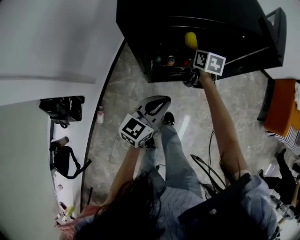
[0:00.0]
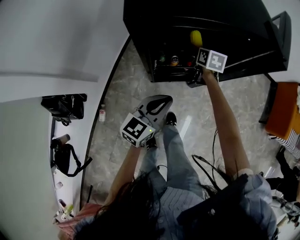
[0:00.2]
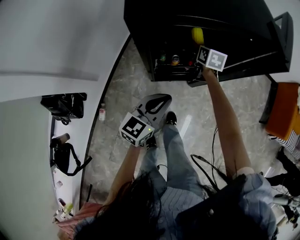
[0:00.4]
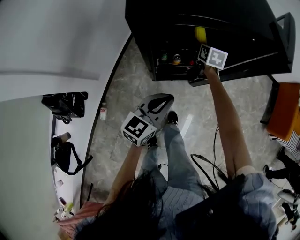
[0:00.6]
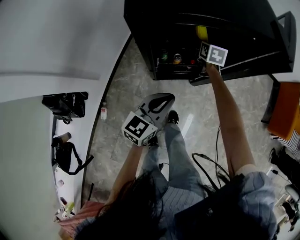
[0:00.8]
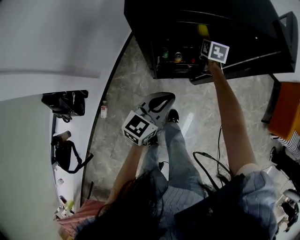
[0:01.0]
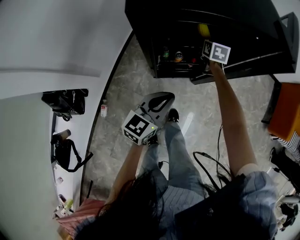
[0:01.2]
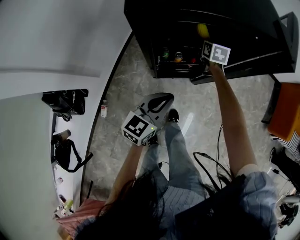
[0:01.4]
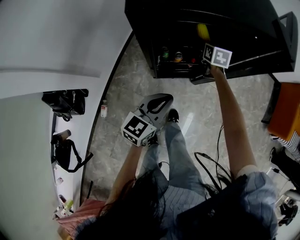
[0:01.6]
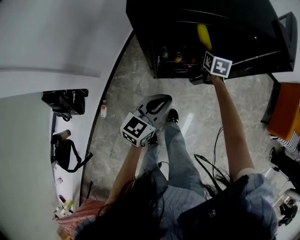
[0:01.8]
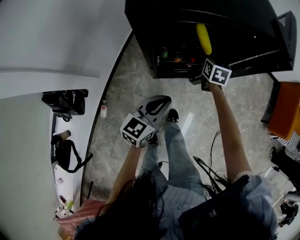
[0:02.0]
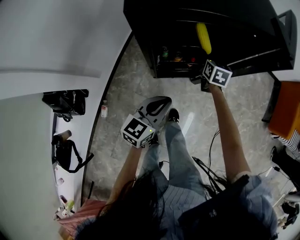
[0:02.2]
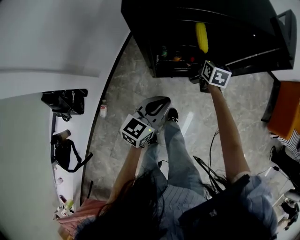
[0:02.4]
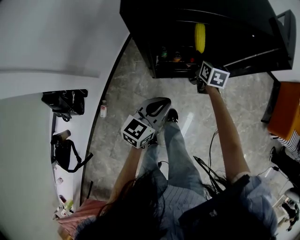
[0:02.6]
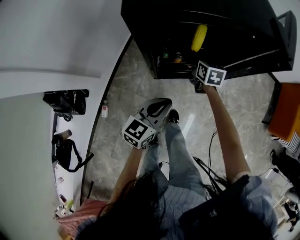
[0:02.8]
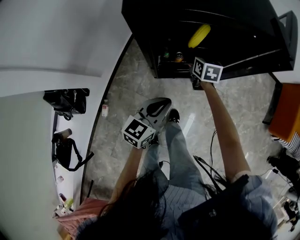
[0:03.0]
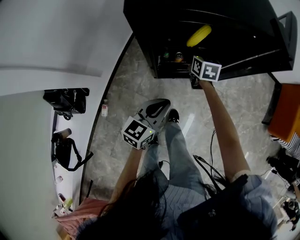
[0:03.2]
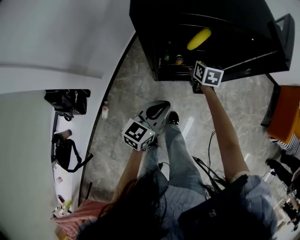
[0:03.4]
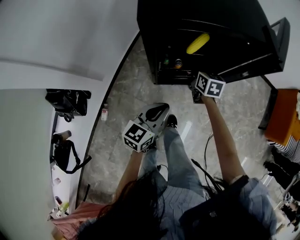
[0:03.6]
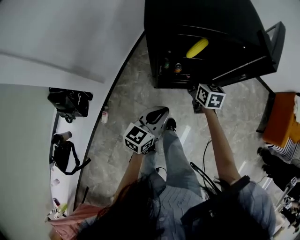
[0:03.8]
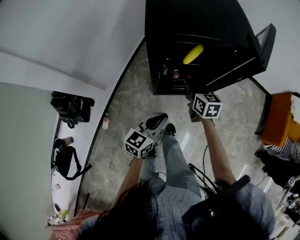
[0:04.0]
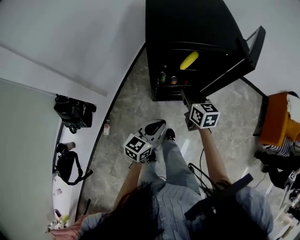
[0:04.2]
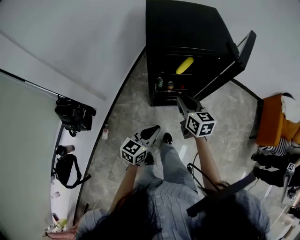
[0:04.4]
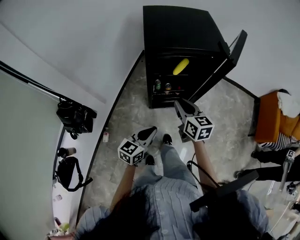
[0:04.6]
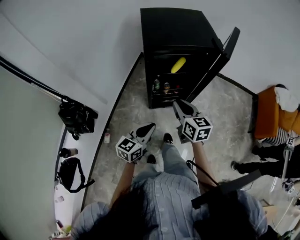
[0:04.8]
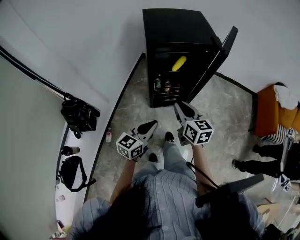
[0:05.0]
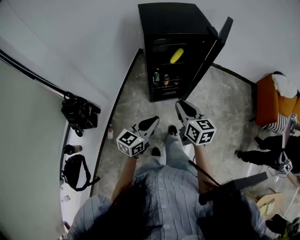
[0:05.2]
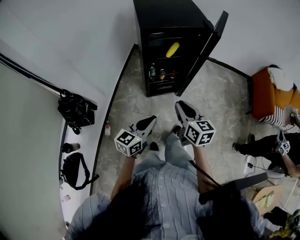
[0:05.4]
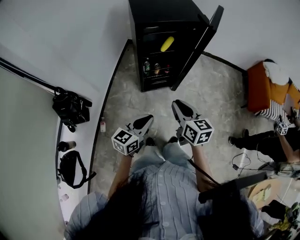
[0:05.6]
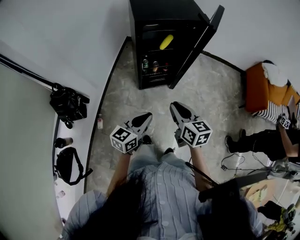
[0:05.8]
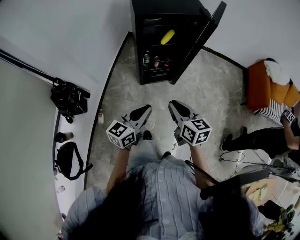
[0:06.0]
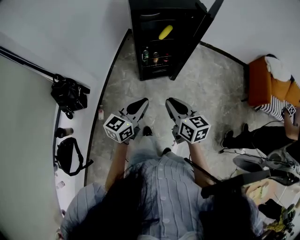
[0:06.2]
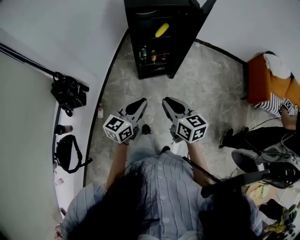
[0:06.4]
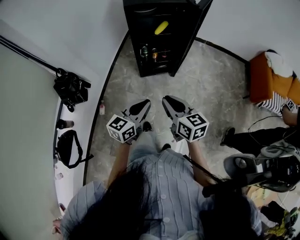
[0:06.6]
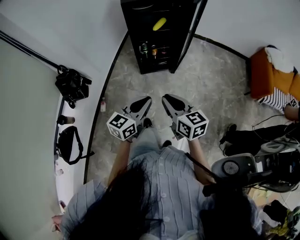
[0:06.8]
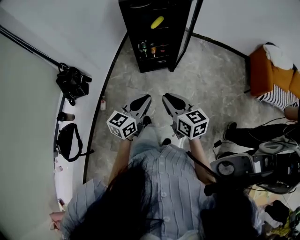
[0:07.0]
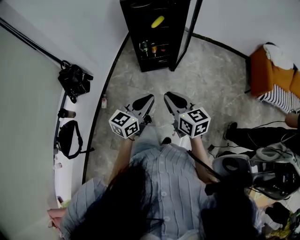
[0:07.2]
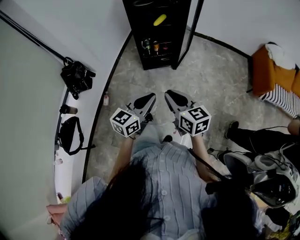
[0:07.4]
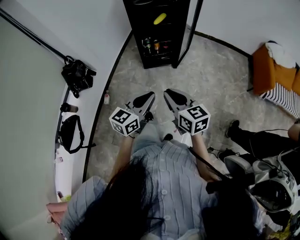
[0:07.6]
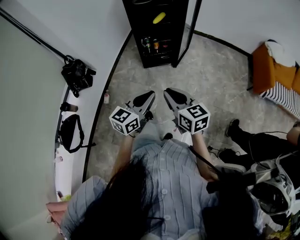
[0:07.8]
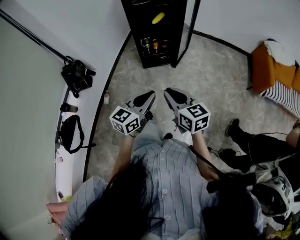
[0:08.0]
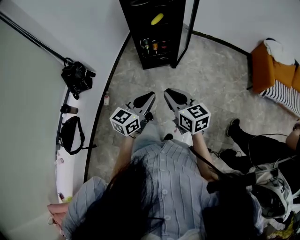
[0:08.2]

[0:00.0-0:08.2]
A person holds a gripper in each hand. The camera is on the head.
0:00.0 to 0:01.6: The right gripper is displaced forward by approximately 5 cm.
0:01.6 to 0:03.2: The right gripper moves backward, some 5 cm, and closes up.
0:03.2 to 0:05.0: The right gripper shifts approximately 40 cm backward and upward; the left gripper shifts some 25 cm backward and upward.
0:05.0 to 0:06.6: The left gripper shifts about 15 cm backward and to the right; the right gripper heads backward, covering roughly 20 cm.
0:06.6 to 0:08.2: The grippers both shift backward and to the right by approximately 15 cm.

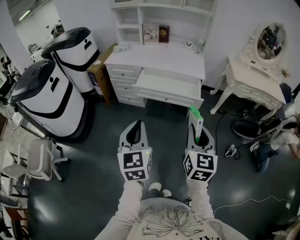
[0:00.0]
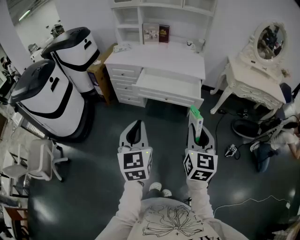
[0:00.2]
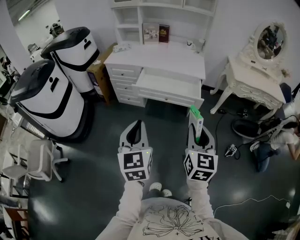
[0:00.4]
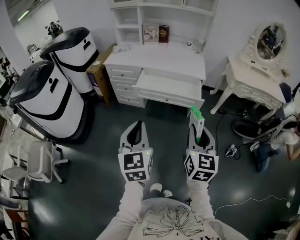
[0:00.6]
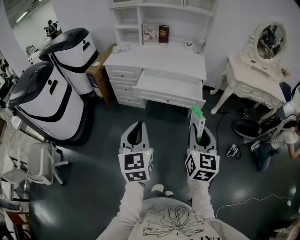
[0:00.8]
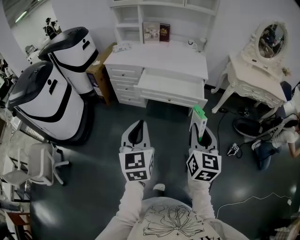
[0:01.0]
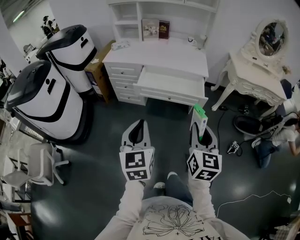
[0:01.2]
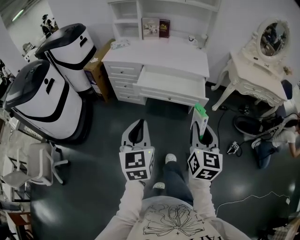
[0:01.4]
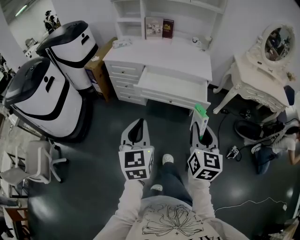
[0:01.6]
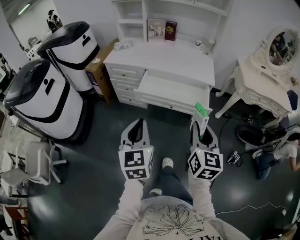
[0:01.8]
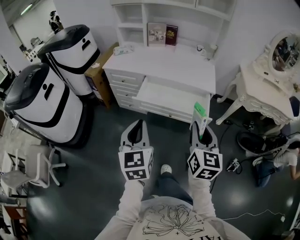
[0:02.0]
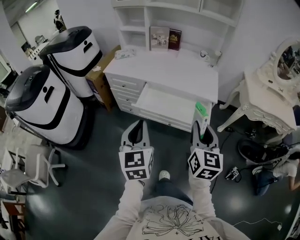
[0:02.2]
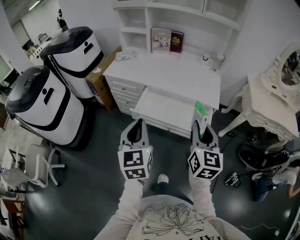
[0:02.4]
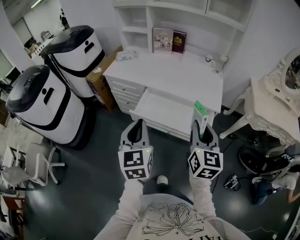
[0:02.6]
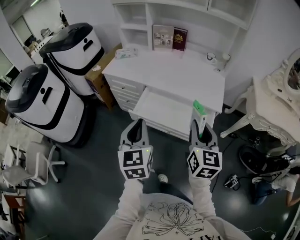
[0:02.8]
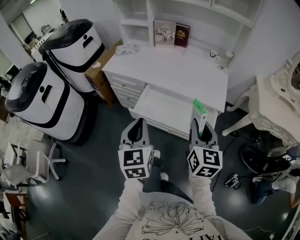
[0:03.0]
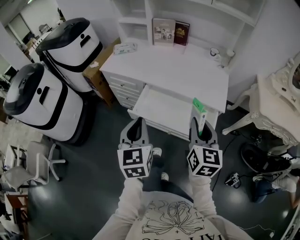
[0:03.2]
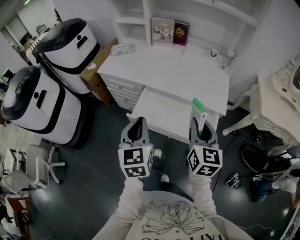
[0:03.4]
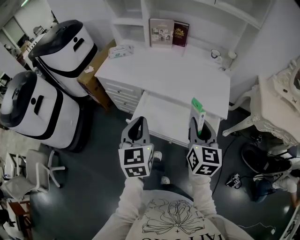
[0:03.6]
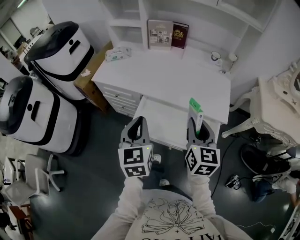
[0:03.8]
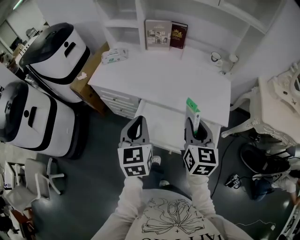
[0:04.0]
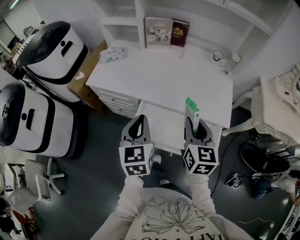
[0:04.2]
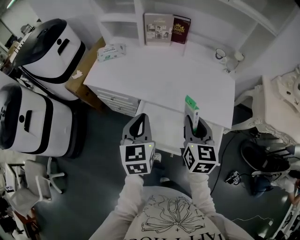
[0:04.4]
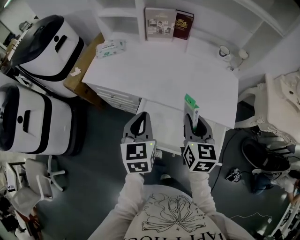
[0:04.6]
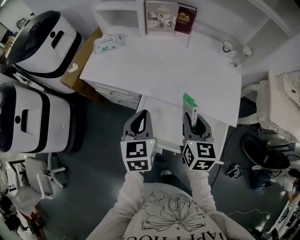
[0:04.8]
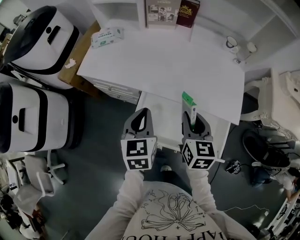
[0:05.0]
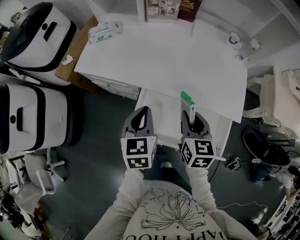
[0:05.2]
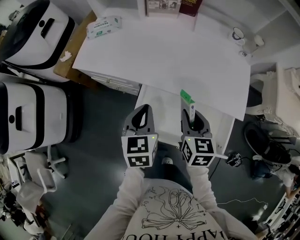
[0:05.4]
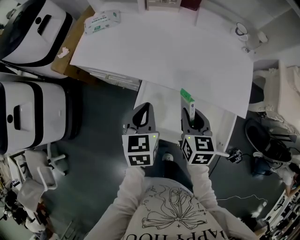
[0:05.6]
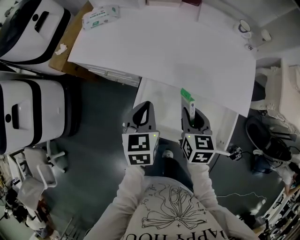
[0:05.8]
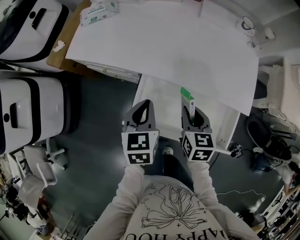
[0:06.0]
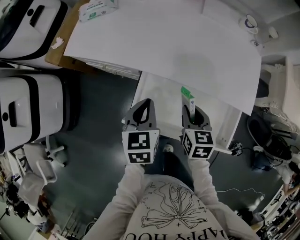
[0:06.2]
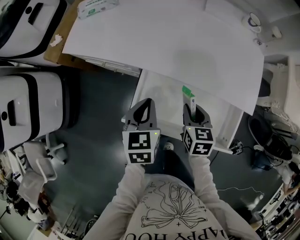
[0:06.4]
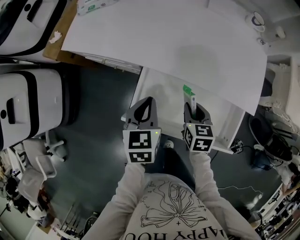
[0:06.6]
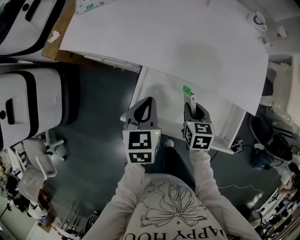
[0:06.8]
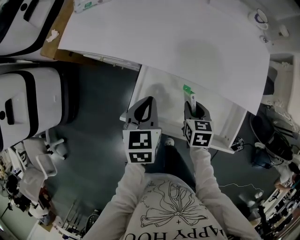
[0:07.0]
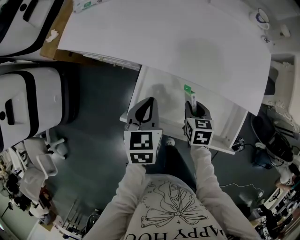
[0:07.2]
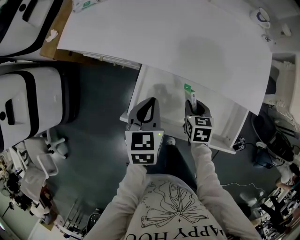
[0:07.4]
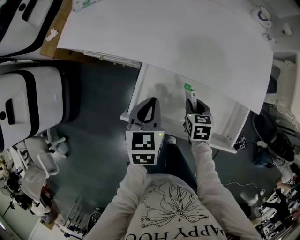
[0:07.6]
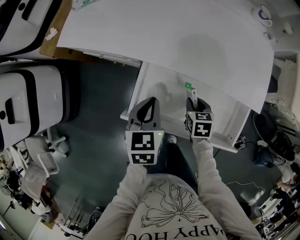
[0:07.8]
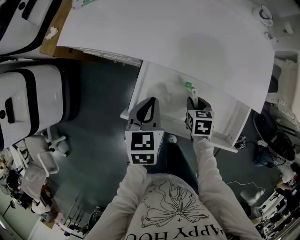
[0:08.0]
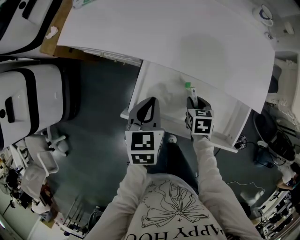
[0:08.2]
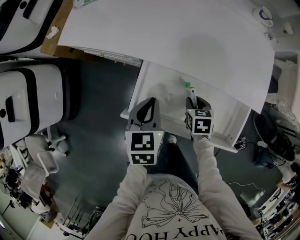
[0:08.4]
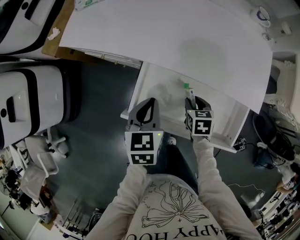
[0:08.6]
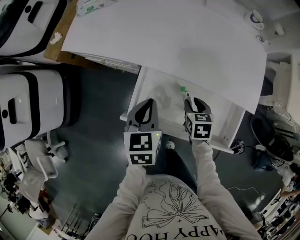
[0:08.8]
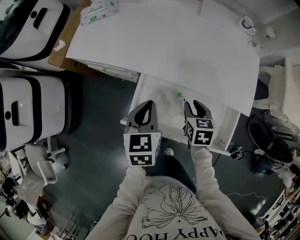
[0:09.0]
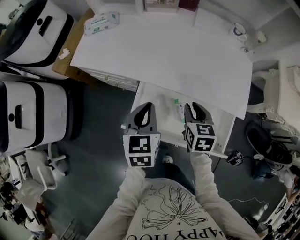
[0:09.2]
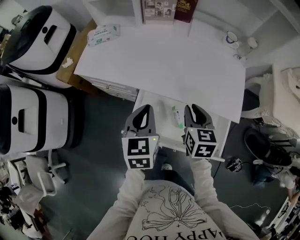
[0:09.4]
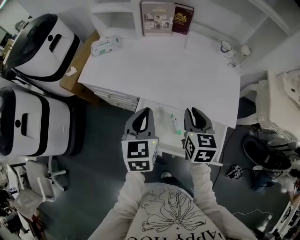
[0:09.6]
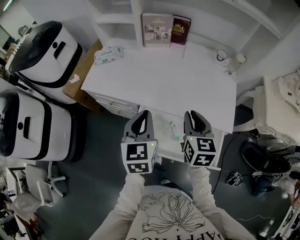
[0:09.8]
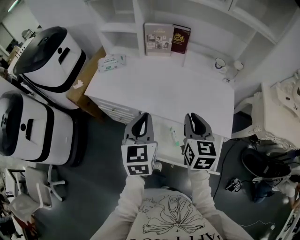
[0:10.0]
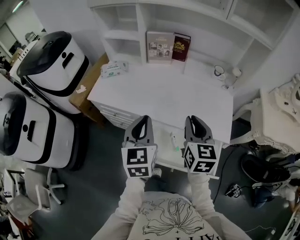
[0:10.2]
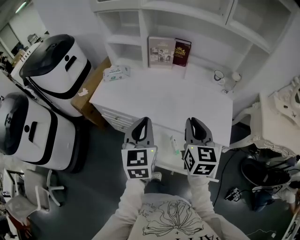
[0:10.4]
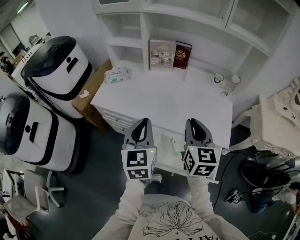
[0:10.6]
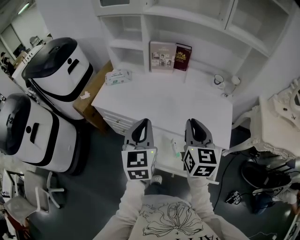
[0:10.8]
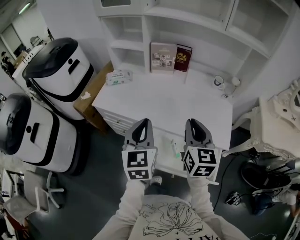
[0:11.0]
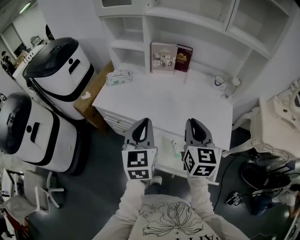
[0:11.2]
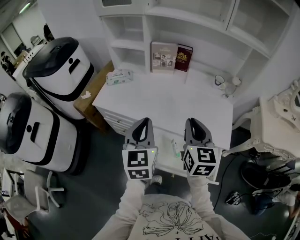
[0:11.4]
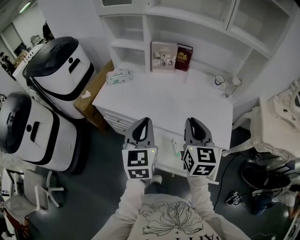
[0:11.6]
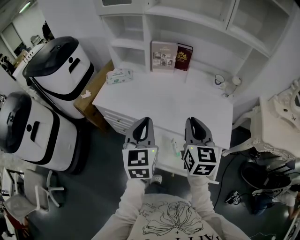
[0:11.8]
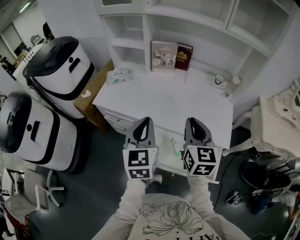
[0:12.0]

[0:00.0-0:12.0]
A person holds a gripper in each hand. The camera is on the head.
0:00.0 to 0:01.6: Both grippers move forward, roughly 5 cm.
0:01.6 to 0:03.0: The grippers both shift forward by about 25 cm.
0:03.0 to 0:04.4: The two grippers go roughly 20 cm forward.
0:04.4 to 0:06.0: Both grippers move downward, about 15 cm. The right gripper changes its angle by approximately 20 degrees.
0:06.0 to 0:07.6: The right gripper moves downward, some 15 cm; the left gripper ends up roughly 5 cm from where it was.
0:07.6 to 0:09.0: The right gripper goes roughly 10 cm upward.
0:09.0 to 0:10.4: The grippers both shift upward by roughly 25 cm. The right gripper tips its fingers upward by about 40 degrees, and closes its fingers. Meanwhile the left gripper turns by some 30 degrees.
0:10.4 to 0:12.0: The grippers move only a little.

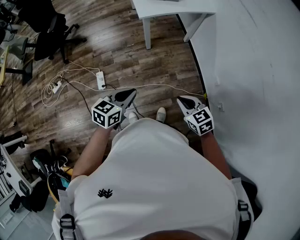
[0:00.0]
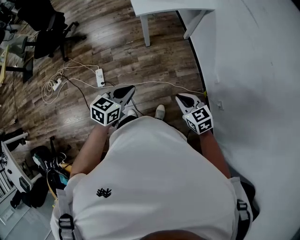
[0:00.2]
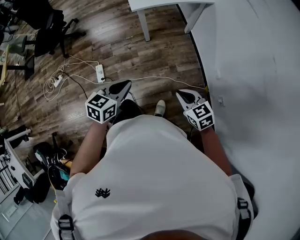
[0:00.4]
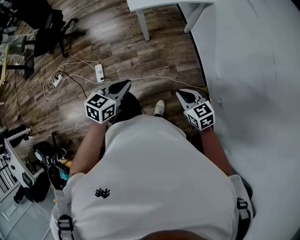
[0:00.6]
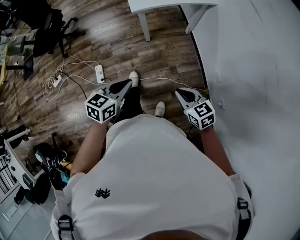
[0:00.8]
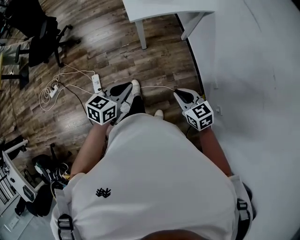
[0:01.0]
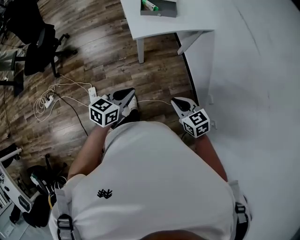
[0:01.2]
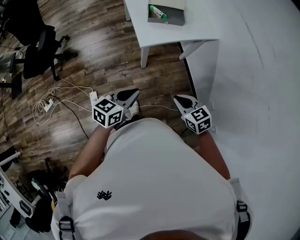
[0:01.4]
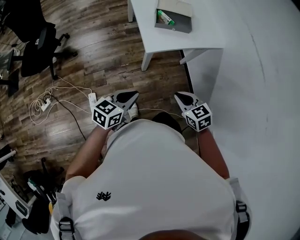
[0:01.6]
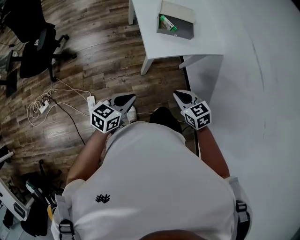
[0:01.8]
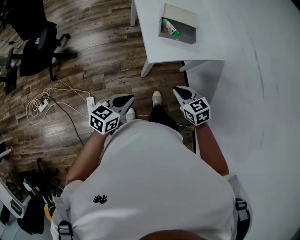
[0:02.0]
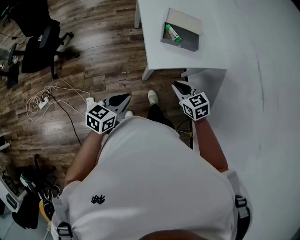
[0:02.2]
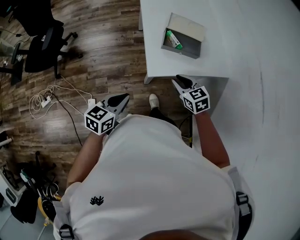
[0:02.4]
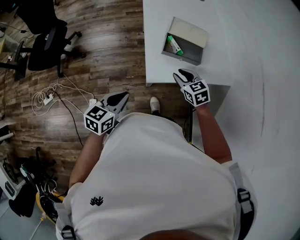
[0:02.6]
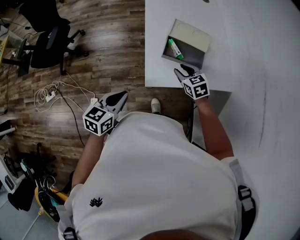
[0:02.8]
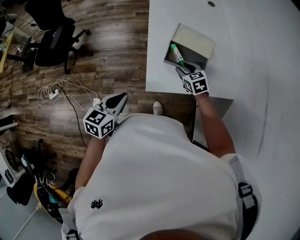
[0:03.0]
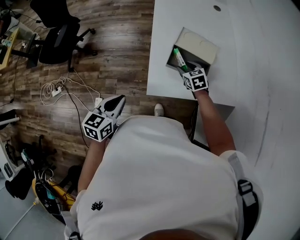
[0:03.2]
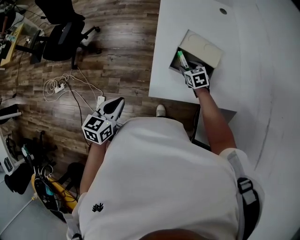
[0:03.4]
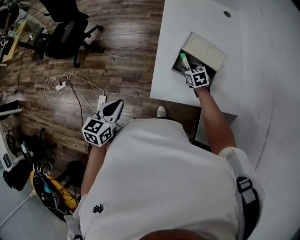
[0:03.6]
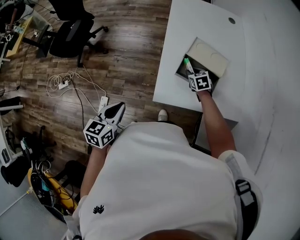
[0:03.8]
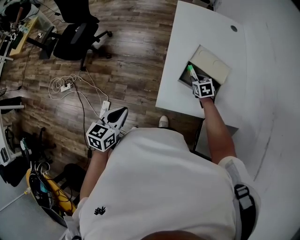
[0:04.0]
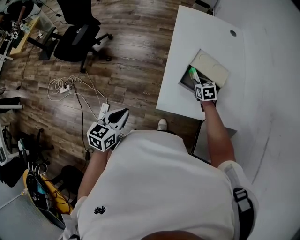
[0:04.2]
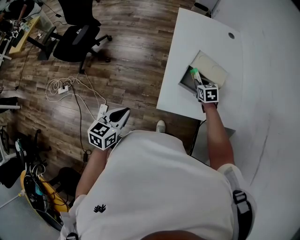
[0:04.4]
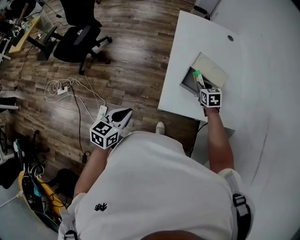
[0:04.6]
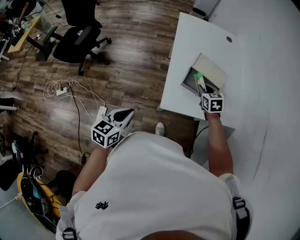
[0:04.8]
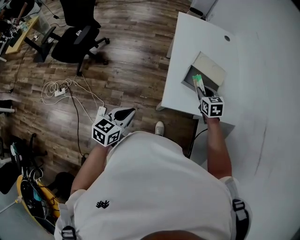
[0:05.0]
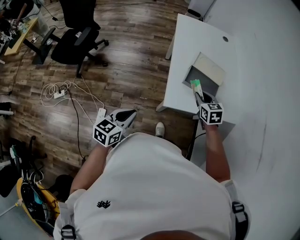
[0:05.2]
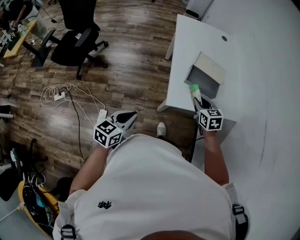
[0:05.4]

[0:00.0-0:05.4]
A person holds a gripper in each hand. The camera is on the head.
0:00.0 to 0:01.4: The grippers both shift forward by approximately 25 cm.
0:01.4 to 0:02.8: The right gripper goes roughly 40 cm forward, and opens its fingers; the left gripper shifts some 20 cm forward, and rotates about 20 degrees.
0:02.8 to 0:04.0: The right gripper moves forward and downward, approximately 15 cm.
0:04.0 to 0:05.4: The left gripper is displaced backward by roughly 5 cm; the right gripper moves backward and upward, some 25 cm.
